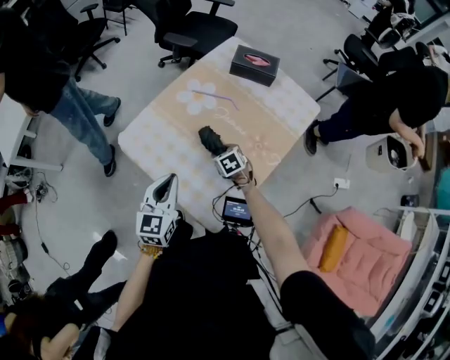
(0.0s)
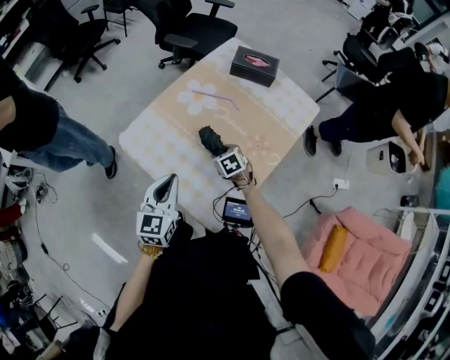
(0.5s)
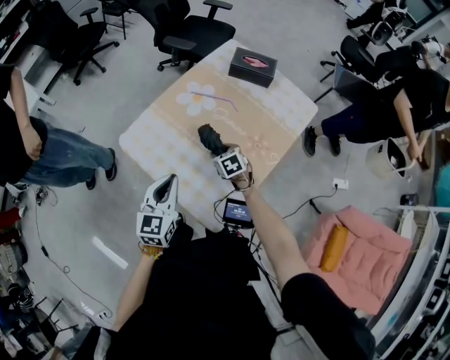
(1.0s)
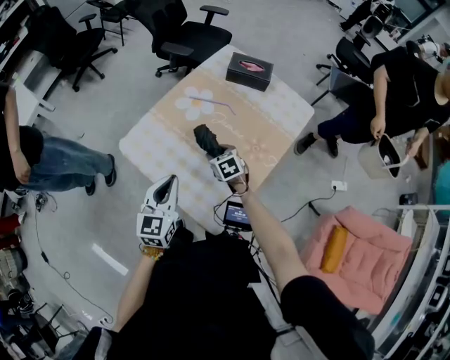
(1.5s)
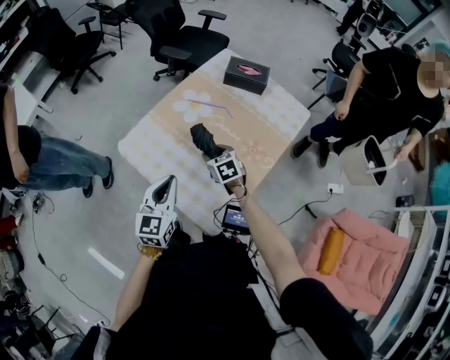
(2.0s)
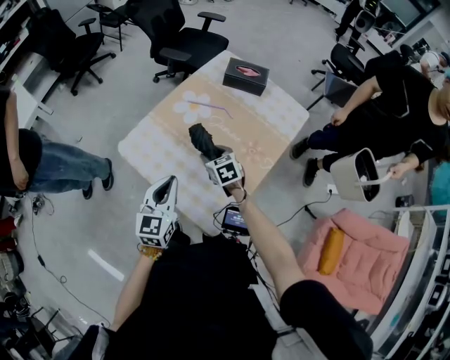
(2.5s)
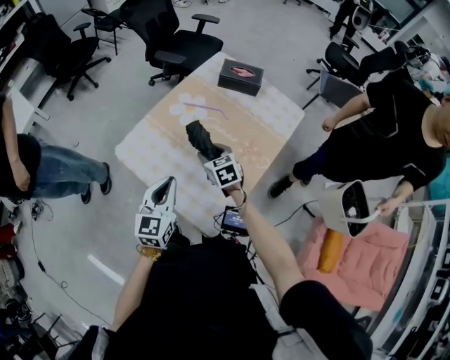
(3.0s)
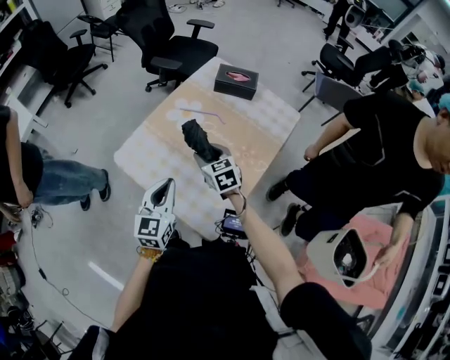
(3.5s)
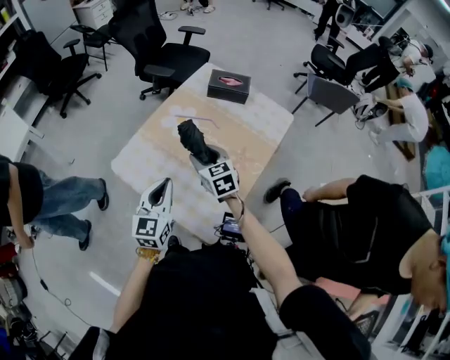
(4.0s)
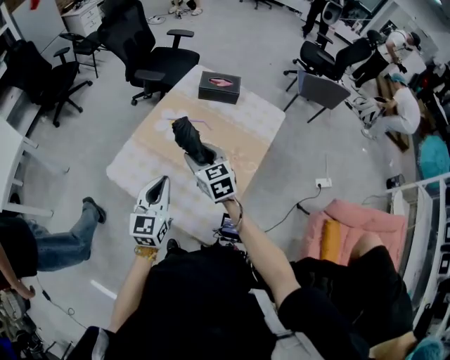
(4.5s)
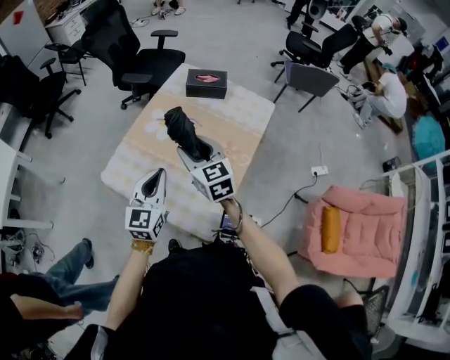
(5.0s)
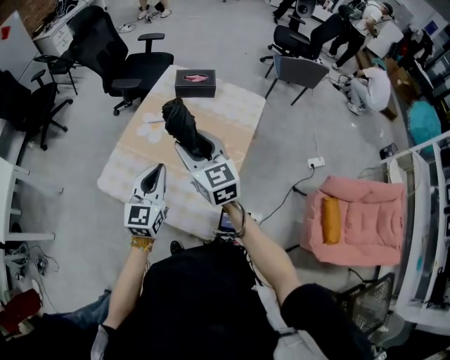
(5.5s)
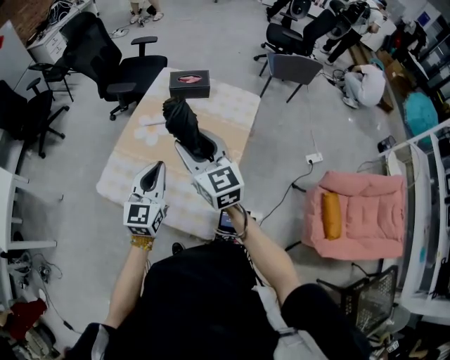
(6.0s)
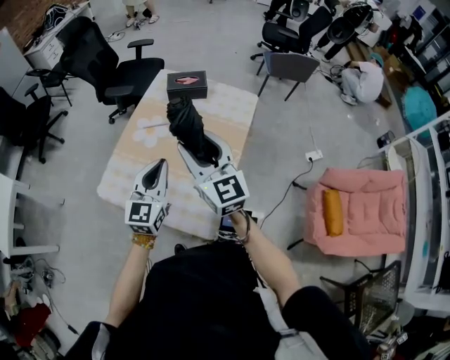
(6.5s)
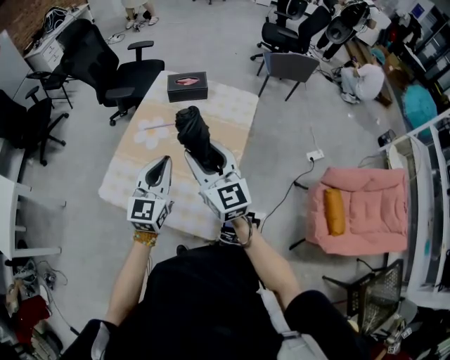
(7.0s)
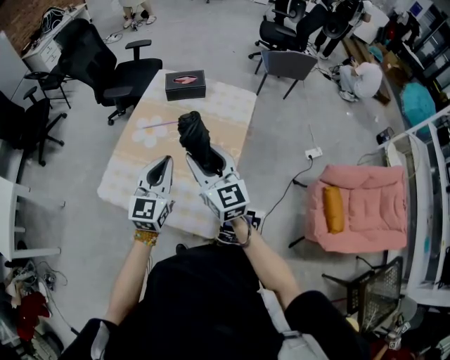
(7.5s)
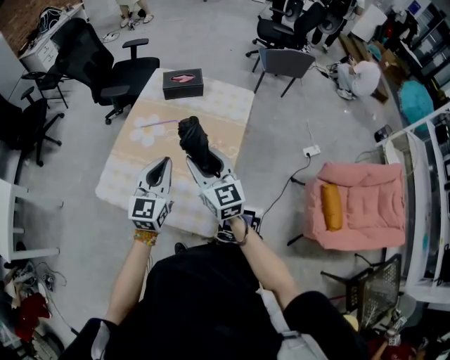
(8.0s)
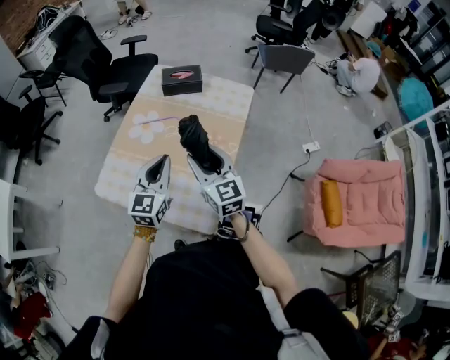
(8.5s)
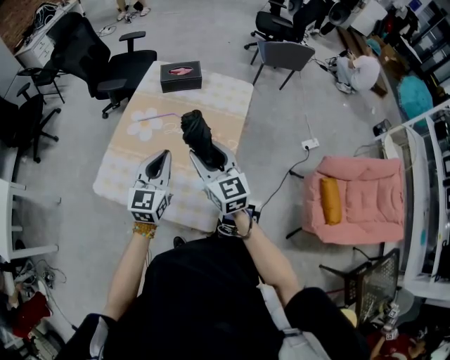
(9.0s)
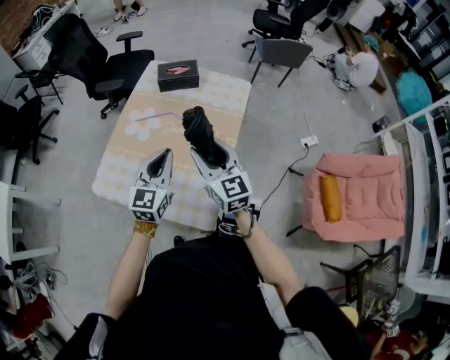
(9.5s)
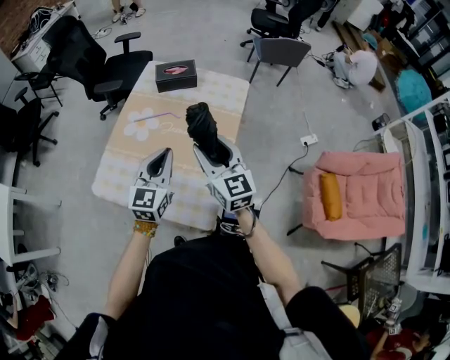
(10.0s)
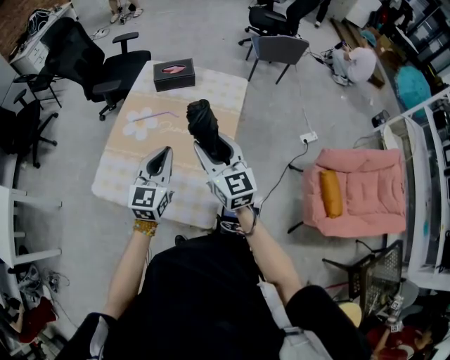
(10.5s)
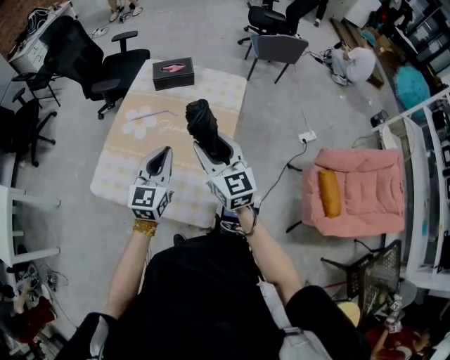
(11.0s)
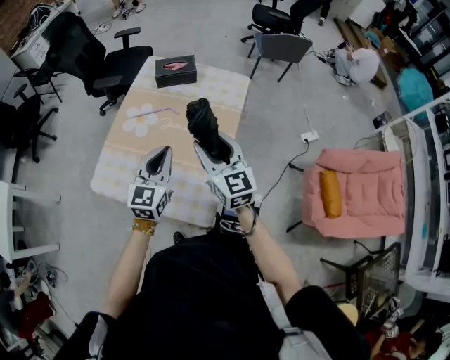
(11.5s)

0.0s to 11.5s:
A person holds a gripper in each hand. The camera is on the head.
0.0s to 2.0s: The right gripper moves upward, about 10 cm.
2.0s to 4.0s: The right gripper moves upward, some 15 cm.
4.0s to 6.0s: The left gripper travels to the right by some 5 cm. Meanwhile the right gripper travels upward by about 20 cm, and changes its angle by approximately 30 degrees.
6.0s to 7.5s: The right gripper shifts by about 5 cm.
7.5s to 11.5s: There are only small adjustments of the grippers.

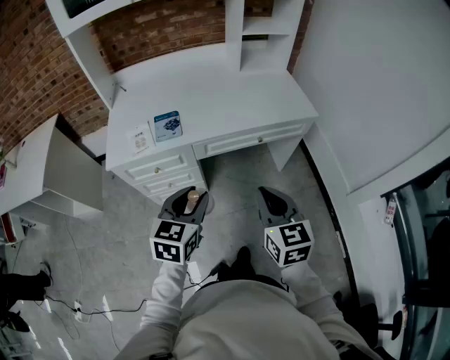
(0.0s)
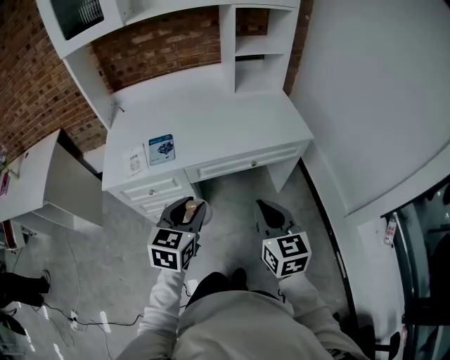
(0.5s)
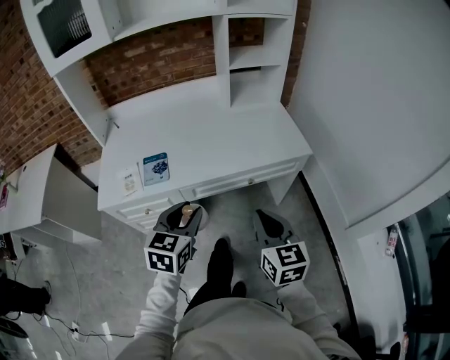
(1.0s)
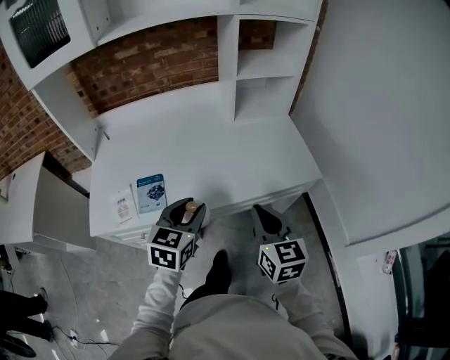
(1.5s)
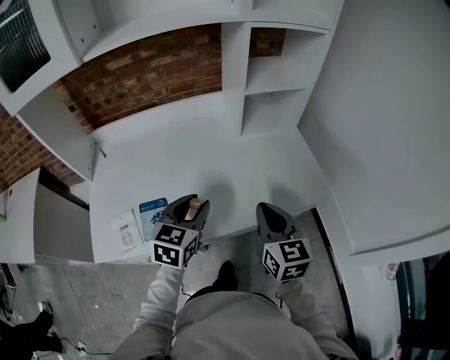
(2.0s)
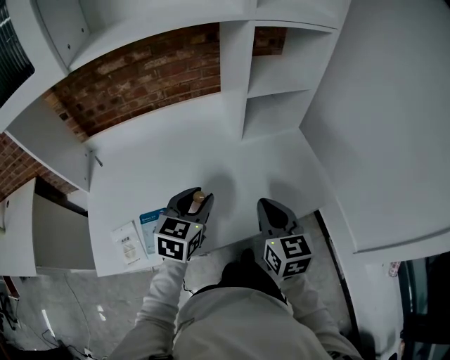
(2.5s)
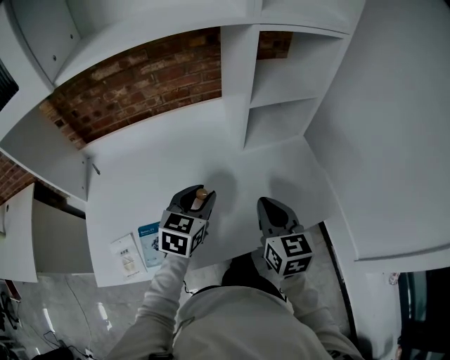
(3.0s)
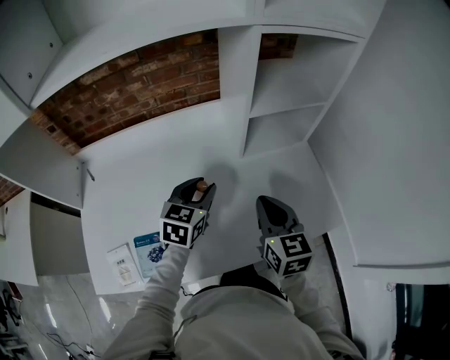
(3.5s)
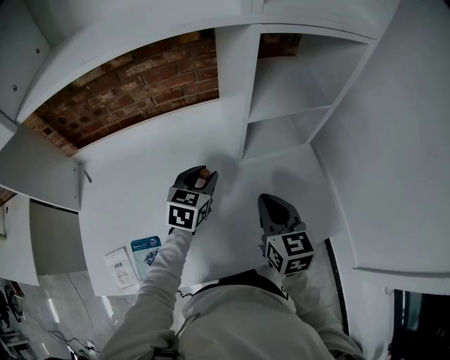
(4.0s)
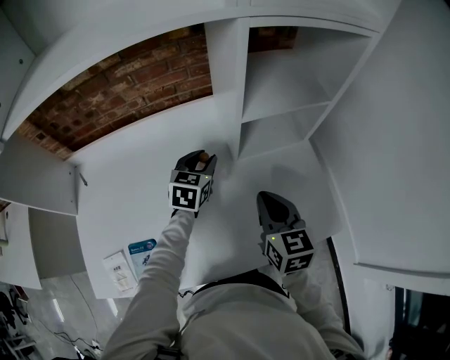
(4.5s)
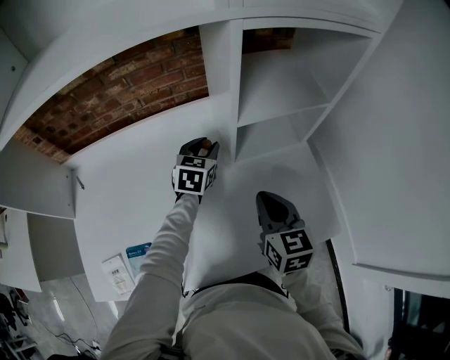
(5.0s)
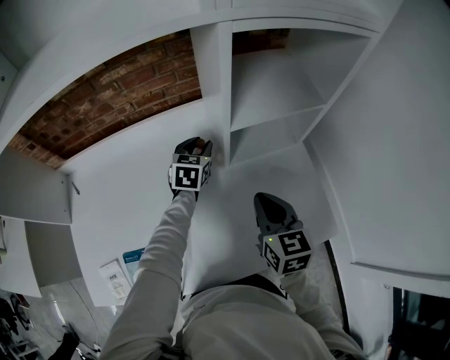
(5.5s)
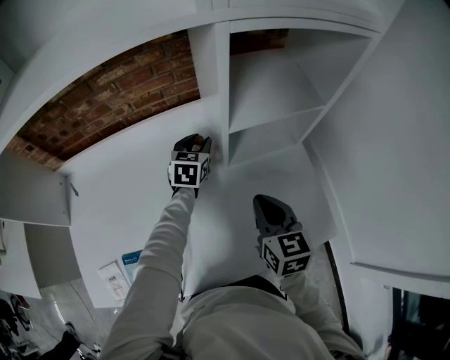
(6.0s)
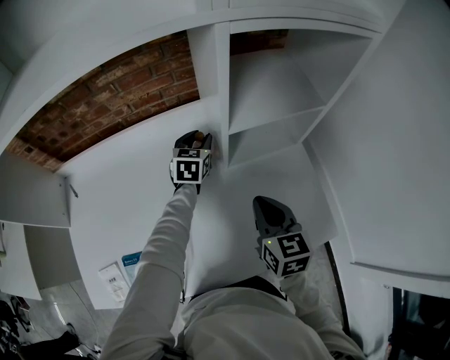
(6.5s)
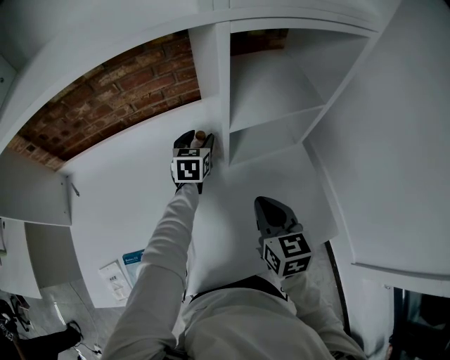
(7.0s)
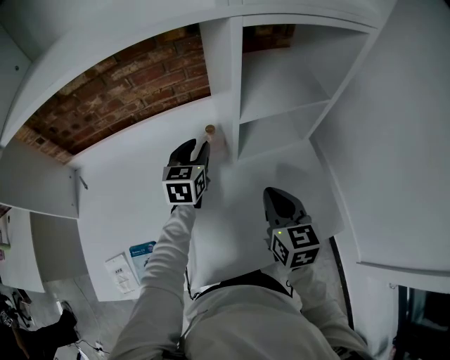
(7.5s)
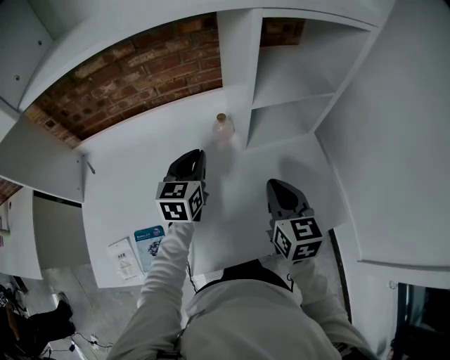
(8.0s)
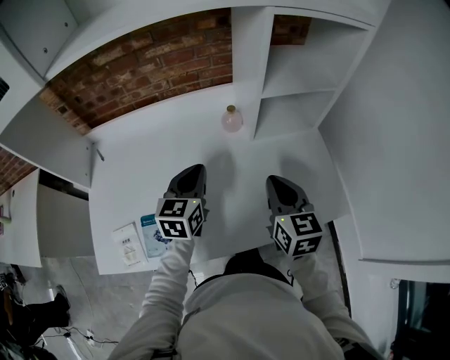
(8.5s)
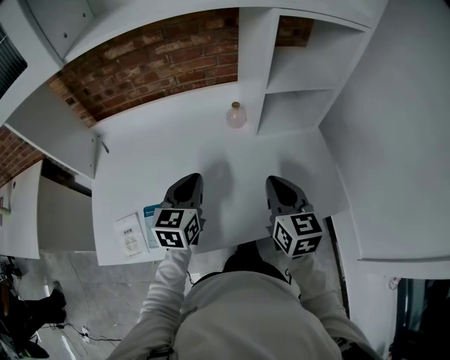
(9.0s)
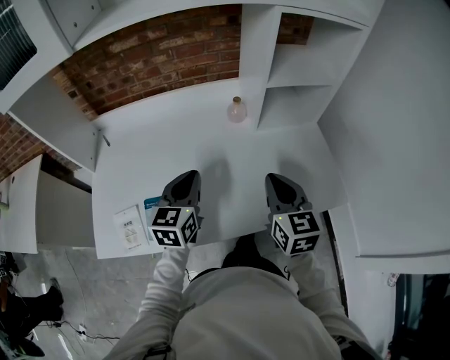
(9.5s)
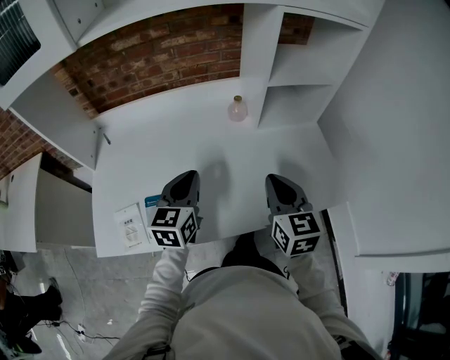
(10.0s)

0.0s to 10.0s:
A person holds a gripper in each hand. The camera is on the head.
0.0s to 2.0s: Both grippers move forward, approximately 35 cm.
2.0s to 4.0s: The two grippers go about 25 cm forward.
4.0s to 6.0s: The right gripper ends up some 5 cm from where it was; the left gripper moves forward, about 15 cm.
6.0s to 8.0s: The left gripper shifts roughly 20 cm backward, upward and to the left, and closes.
8.0s to 10.0s: The right gripper heads backward and to the left, covering roughly 10 cm; the left gripper shifts approximately 20 cm backward.

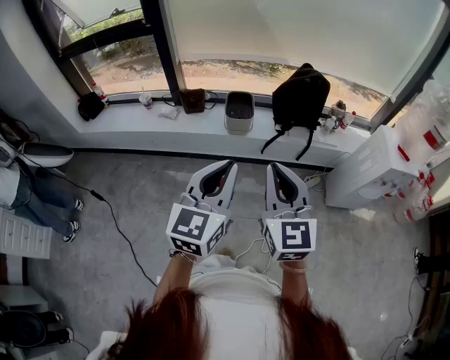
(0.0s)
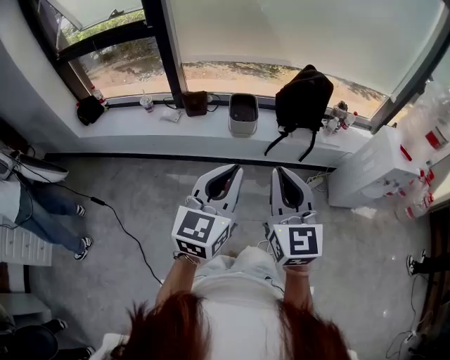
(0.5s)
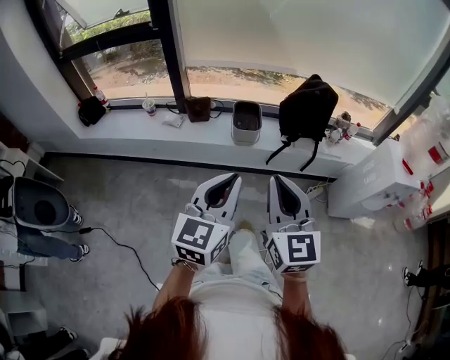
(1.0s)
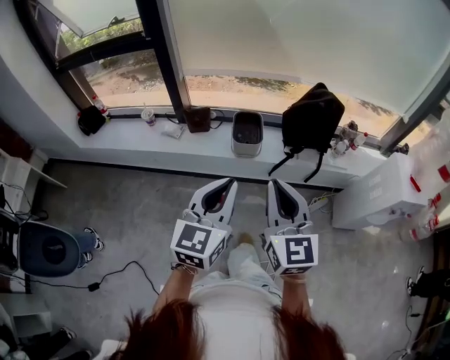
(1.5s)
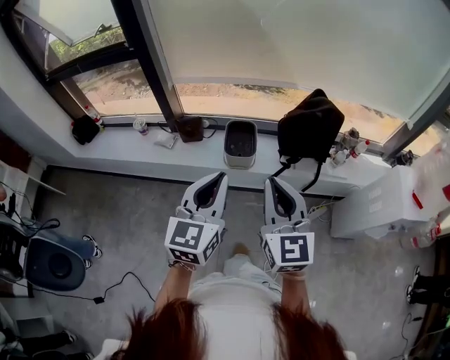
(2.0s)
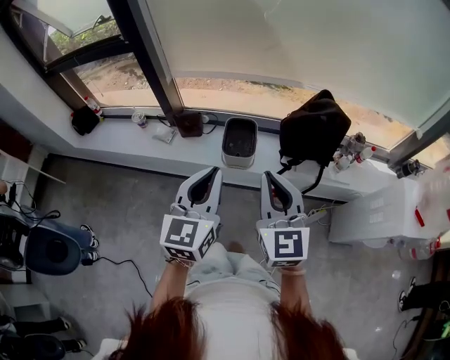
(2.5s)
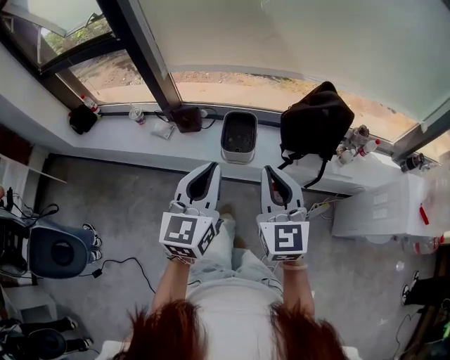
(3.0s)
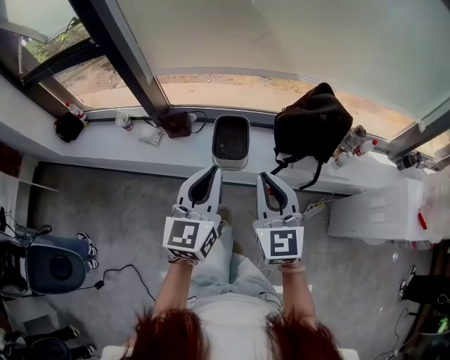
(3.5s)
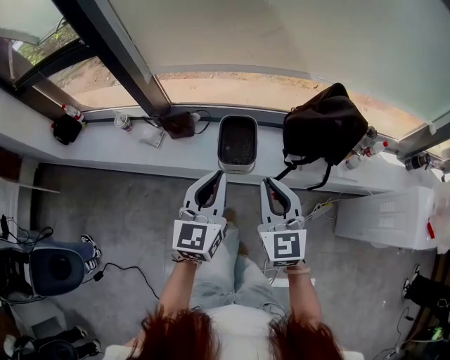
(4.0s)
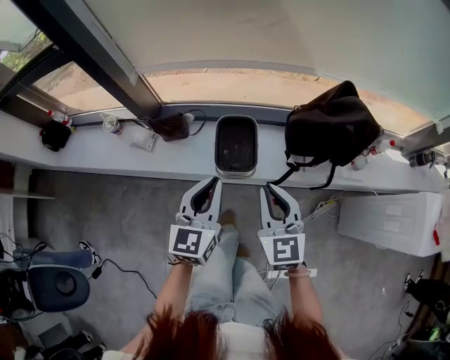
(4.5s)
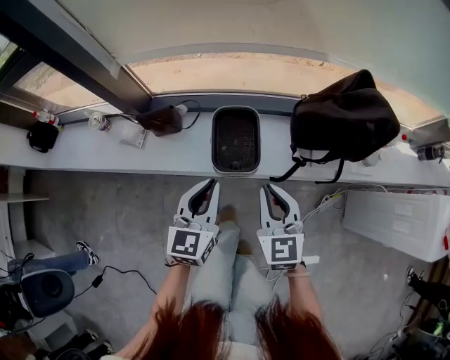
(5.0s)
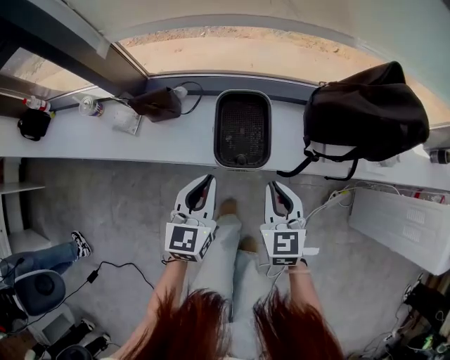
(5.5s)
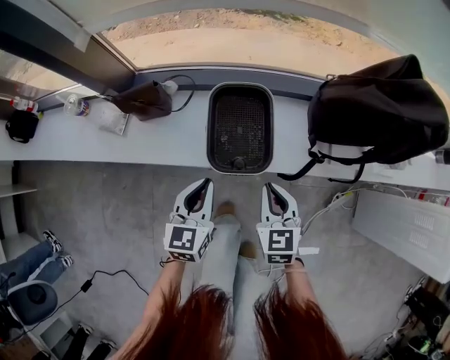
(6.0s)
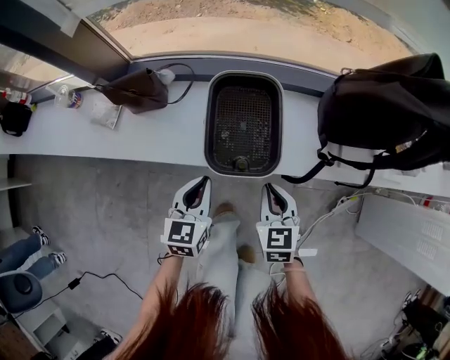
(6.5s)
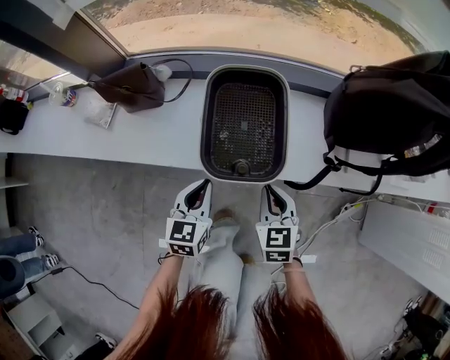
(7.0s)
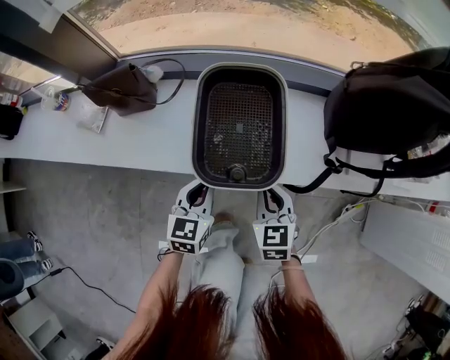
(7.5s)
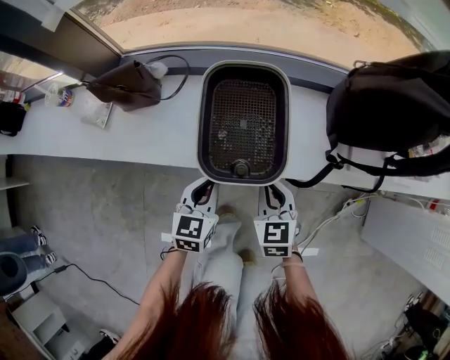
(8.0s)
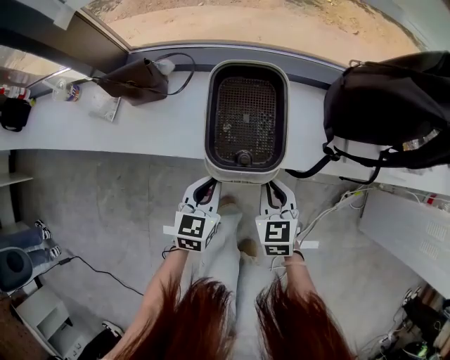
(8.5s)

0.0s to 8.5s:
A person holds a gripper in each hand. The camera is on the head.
0.0s to 2.0s: The grippers both shift forward by approximately 25 cm.
2.0s to 4.0s: Both grippers travel together forward and downward, approximately 25 cm.
4.0s to 6.5s: Both grippers travel together downward, approximately 40 cm. The right gripper swivels roughly 30 degrees. Meanwhile the left gripper rotates roughly 20 degrees.
6.5s to 8.5s: The right gripper travels downward and back again, some 10 cm each way.
